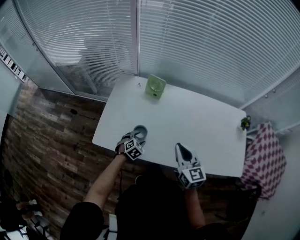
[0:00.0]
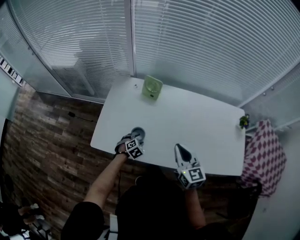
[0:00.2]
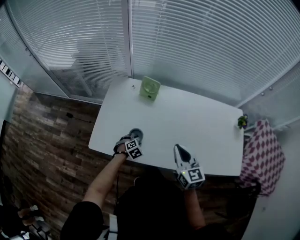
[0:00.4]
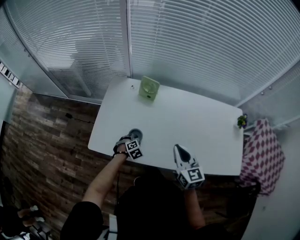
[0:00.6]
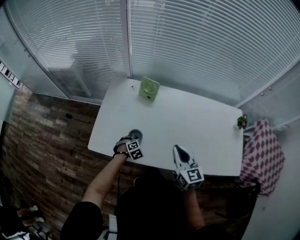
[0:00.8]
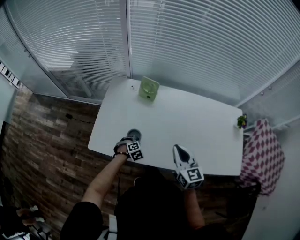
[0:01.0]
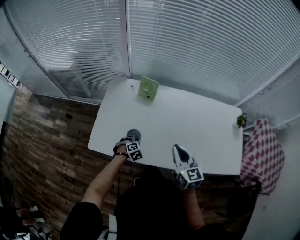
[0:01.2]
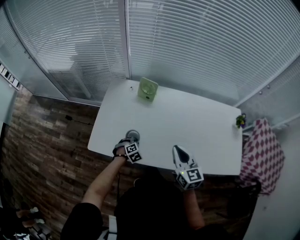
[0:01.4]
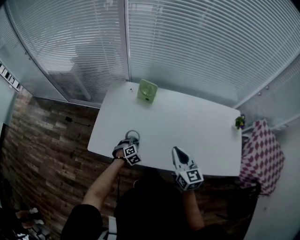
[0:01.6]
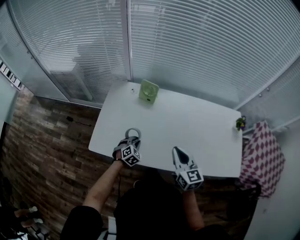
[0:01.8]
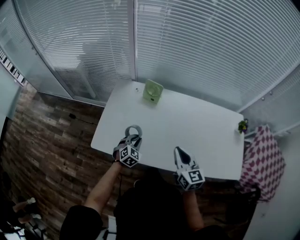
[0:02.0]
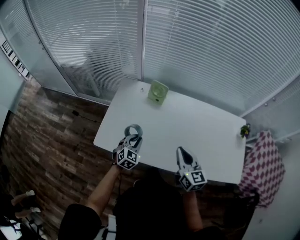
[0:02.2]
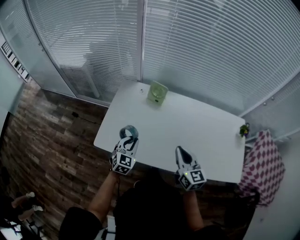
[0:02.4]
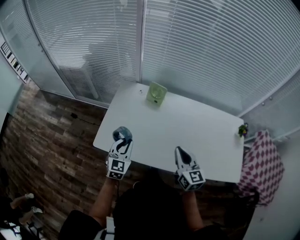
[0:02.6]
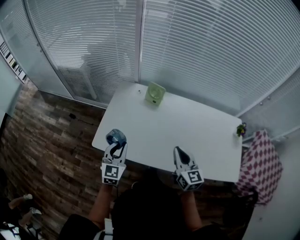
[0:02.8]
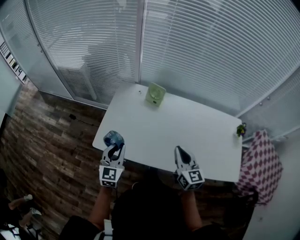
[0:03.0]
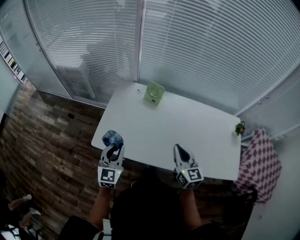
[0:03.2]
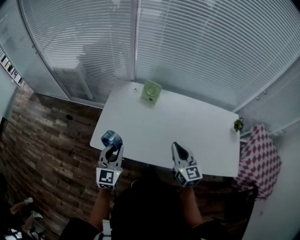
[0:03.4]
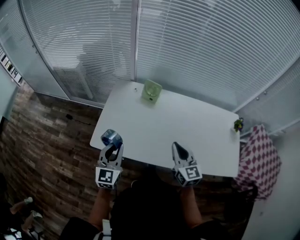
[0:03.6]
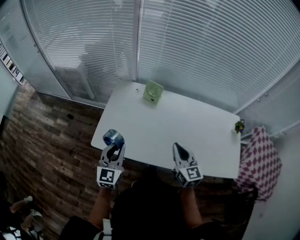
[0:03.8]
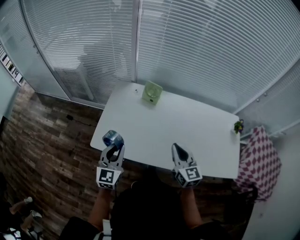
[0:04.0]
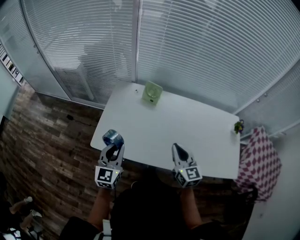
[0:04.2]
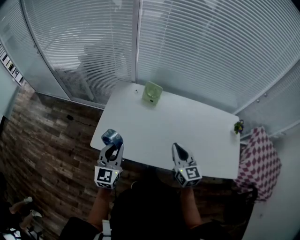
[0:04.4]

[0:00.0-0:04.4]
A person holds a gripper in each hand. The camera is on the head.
0:00.0 to 0:01.4: The left gripper closes its fingers.
0:01.4 to 0:03.0: The left gripper shifts some 30 cm upward, and tilts its fingers some 50 degrees upward.
0:03.0 to 0:04.4: The grippers move only a little.

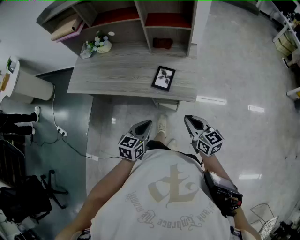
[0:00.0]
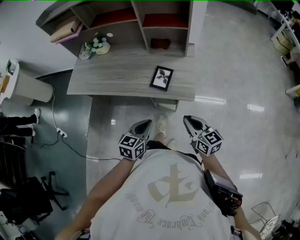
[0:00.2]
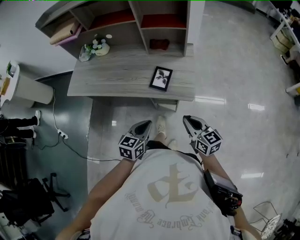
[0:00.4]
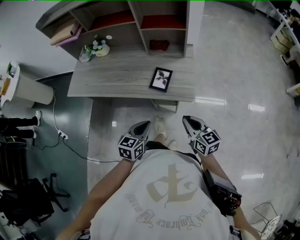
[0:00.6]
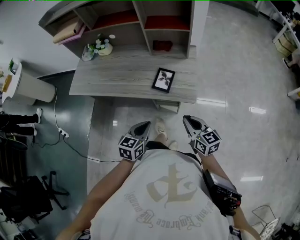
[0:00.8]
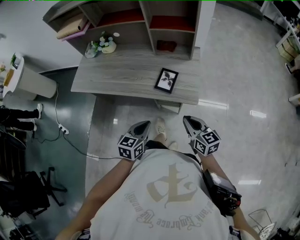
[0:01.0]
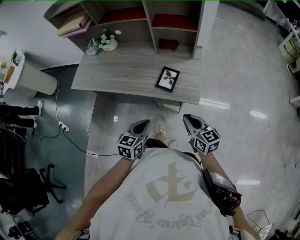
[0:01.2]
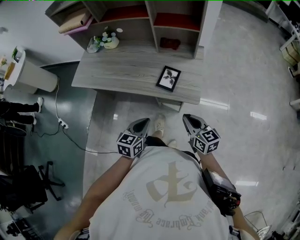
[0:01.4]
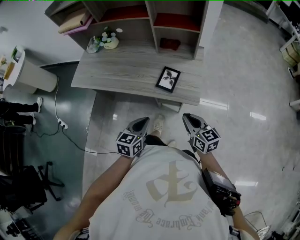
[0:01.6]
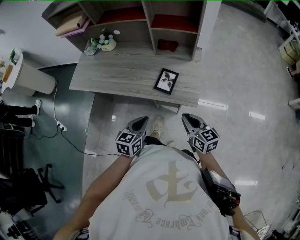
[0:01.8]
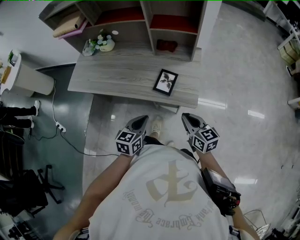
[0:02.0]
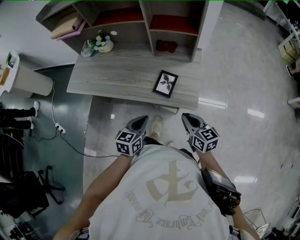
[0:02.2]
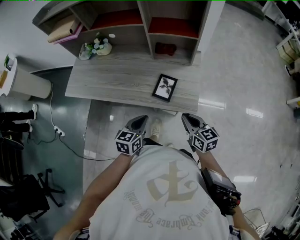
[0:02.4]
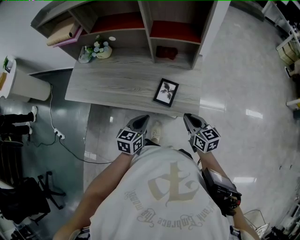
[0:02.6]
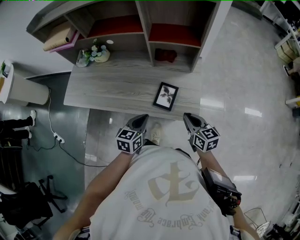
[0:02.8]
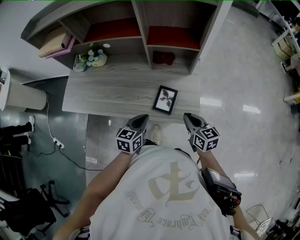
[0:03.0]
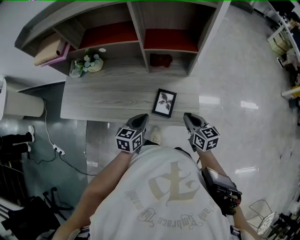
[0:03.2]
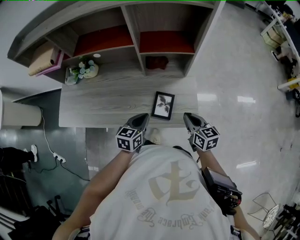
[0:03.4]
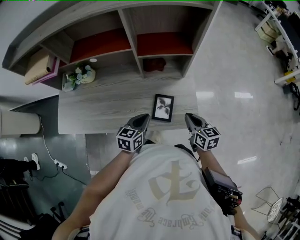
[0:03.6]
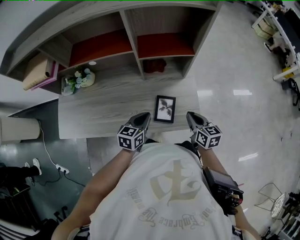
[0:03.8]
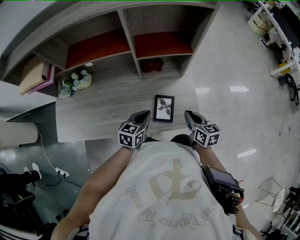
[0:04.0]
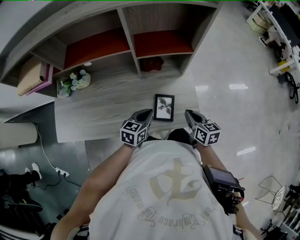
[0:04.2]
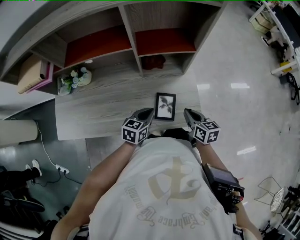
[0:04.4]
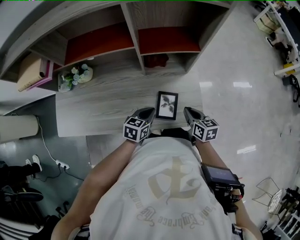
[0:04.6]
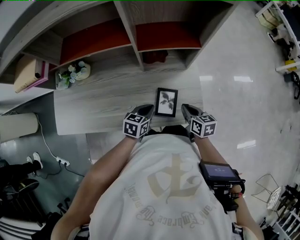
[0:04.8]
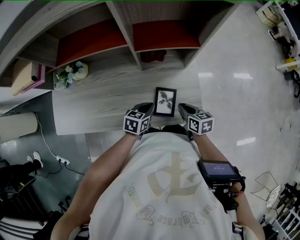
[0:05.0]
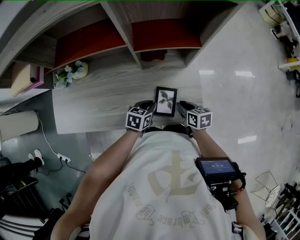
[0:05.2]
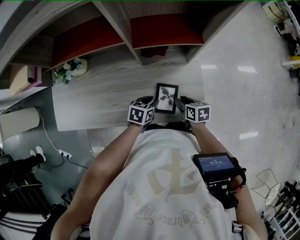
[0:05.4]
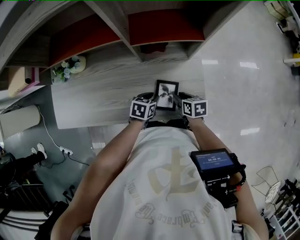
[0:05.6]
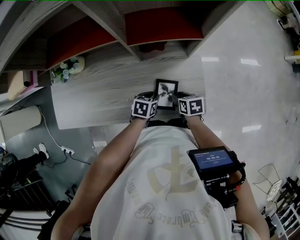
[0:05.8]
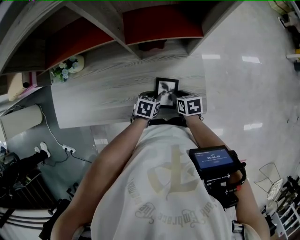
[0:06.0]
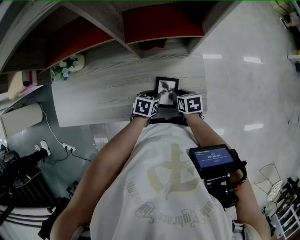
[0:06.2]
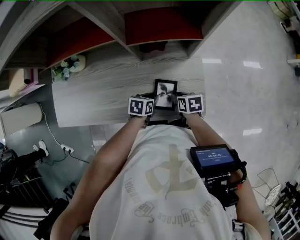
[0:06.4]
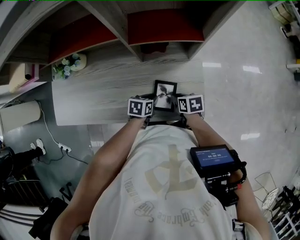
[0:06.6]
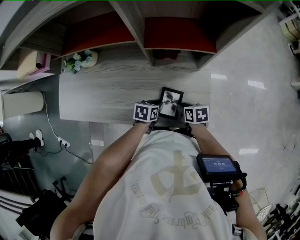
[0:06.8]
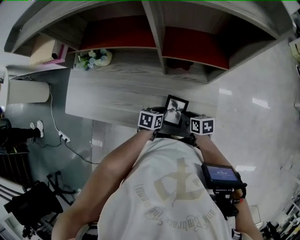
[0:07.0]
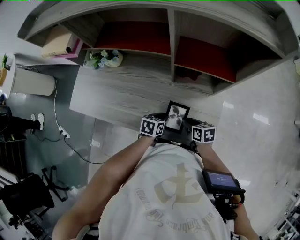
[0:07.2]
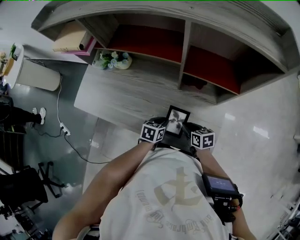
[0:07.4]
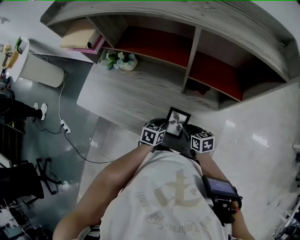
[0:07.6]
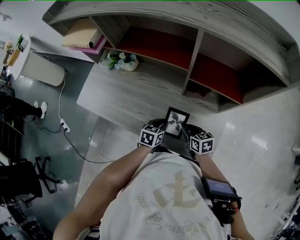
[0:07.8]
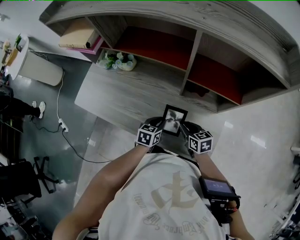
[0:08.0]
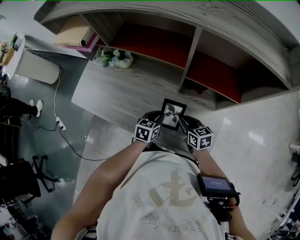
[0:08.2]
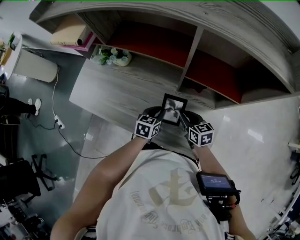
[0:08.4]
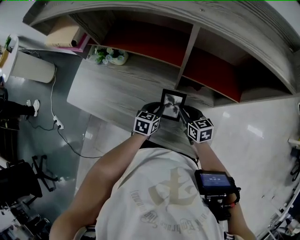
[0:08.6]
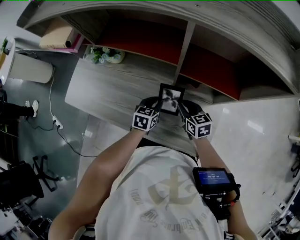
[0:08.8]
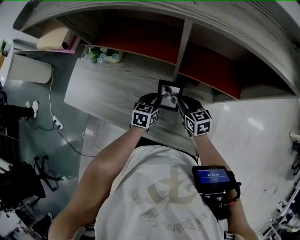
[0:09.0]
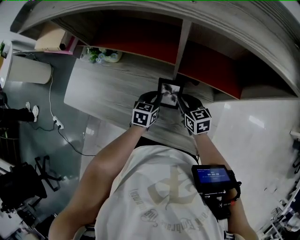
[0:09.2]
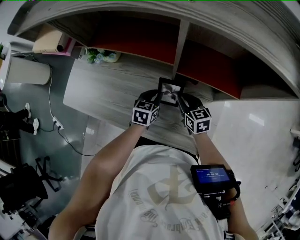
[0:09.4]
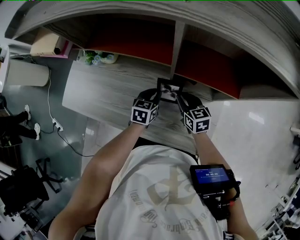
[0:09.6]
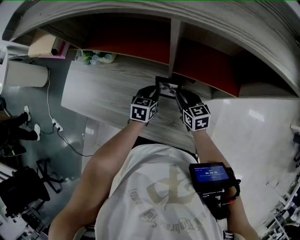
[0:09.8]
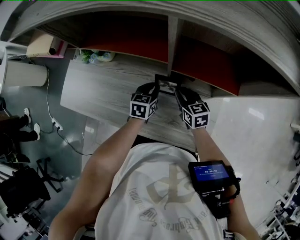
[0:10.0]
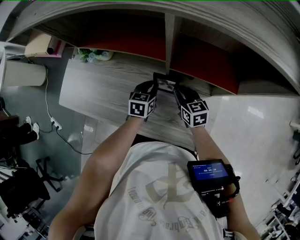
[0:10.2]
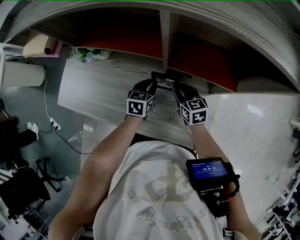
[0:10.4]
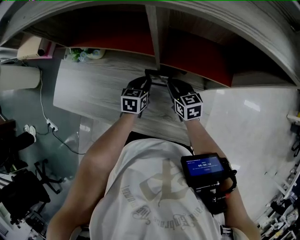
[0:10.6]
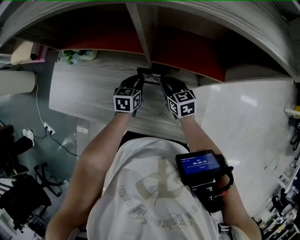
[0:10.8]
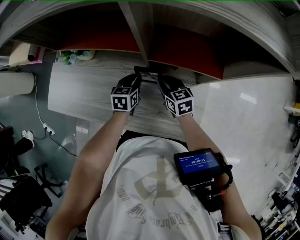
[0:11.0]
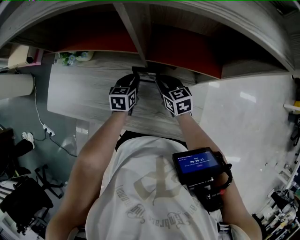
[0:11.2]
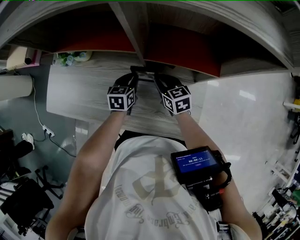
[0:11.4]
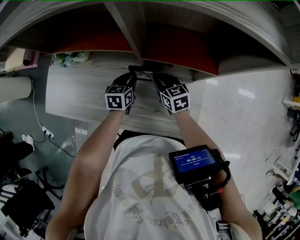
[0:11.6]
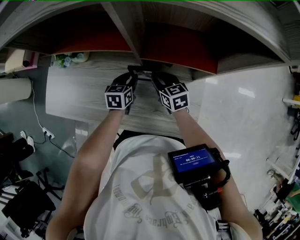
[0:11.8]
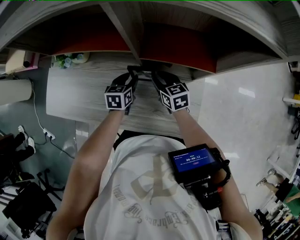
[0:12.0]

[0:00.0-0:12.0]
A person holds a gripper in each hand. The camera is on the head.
0:00.0 to 0:01.6: There are only small adjustments of the grippers.
0:01.6 to 0:03.0: The two grippers go approximately 15 cm forward.
0:03.0 to 0:04.4: The left gripper moves forward, approximately 10 cm, while the right gripper heads forward, covering some 5 cm.
0:04.4 to 0:06.0: Both grippers move downward, roughly 15 cm. The left gripper swivels roughly 30 degrees, and opens; the right gripper swivels some 30 degrees, and opens.
0:06.0 to 0:07.6: The right gripper ends up roughly 10 cm from where it was, and rotates some 30 degrees, while the left gripper moves some 10 cm, and changes its angle by about 30 degrees.
0:07.6 to 0:09.0: The two grippers go about 10 cm forward.
0:09.0 to 0:10.4: There are only small adjustments of the grippers.
0:10.4 to 0:12.0: The left gripper opens up.

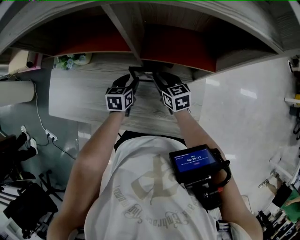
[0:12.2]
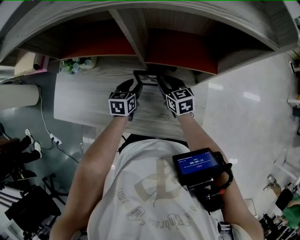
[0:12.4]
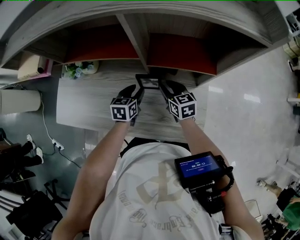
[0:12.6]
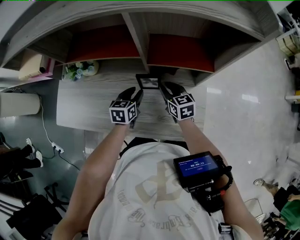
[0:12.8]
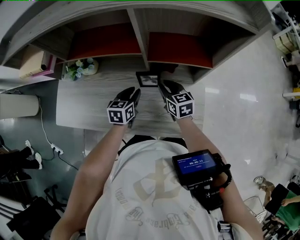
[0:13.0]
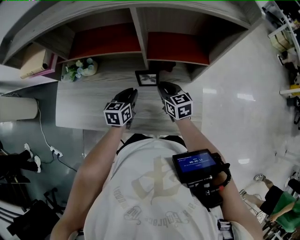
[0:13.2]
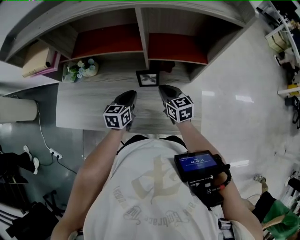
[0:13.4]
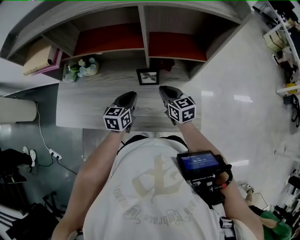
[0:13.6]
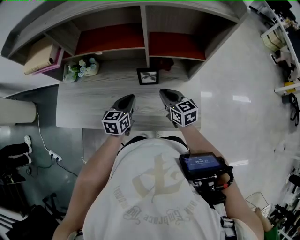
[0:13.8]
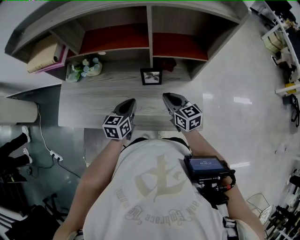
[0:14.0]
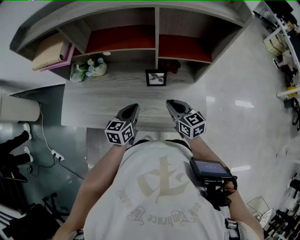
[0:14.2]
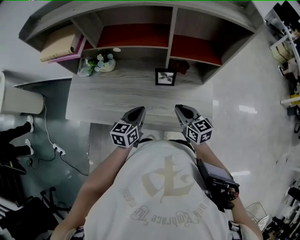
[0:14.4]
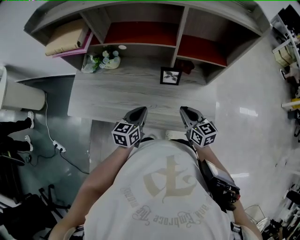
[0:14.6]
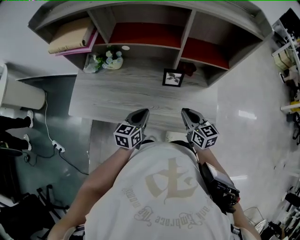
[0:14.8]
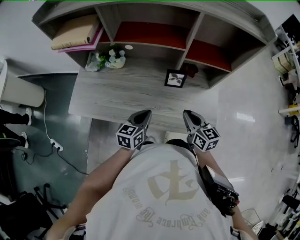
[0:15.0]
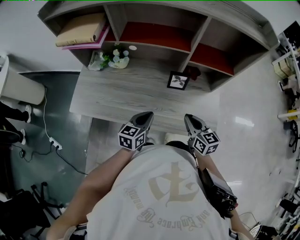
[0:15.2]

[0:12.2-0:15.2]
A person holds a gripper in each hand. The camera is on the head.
0:12.2 to 0:13.8: Both grippers move backward and upward, approximately 15 cm. The right gripper closes, while the left gripper closes its fingers.
0:13.8 to 0:15.2: The right gripper heads backward, covering roughly 10 cm, while the left gripper is displaced backward and to the left by some 10 cm.

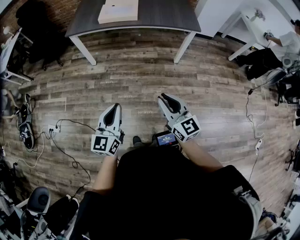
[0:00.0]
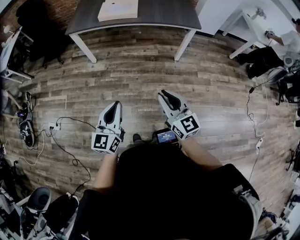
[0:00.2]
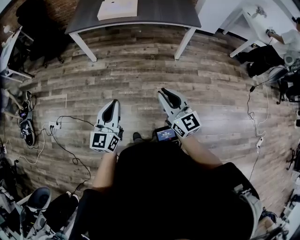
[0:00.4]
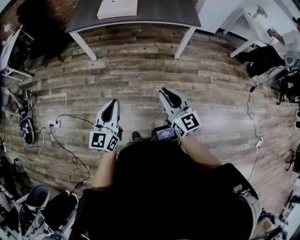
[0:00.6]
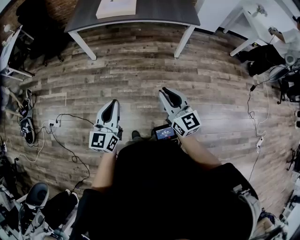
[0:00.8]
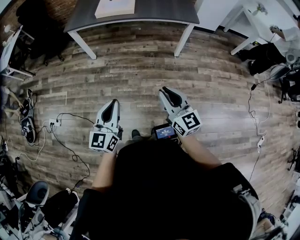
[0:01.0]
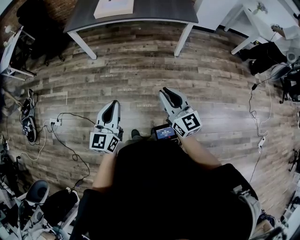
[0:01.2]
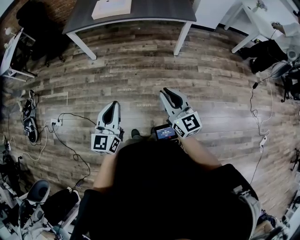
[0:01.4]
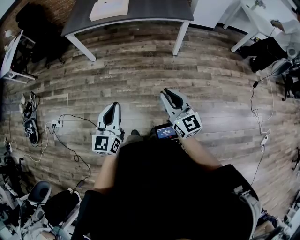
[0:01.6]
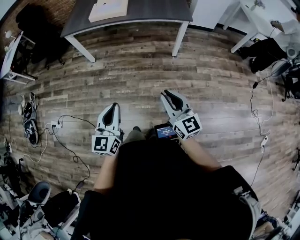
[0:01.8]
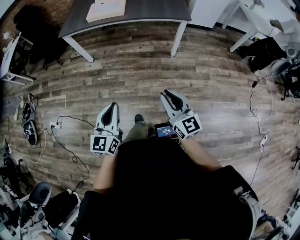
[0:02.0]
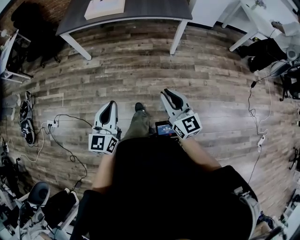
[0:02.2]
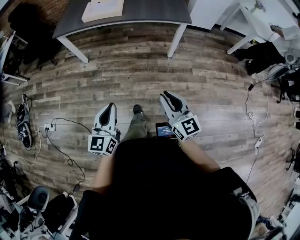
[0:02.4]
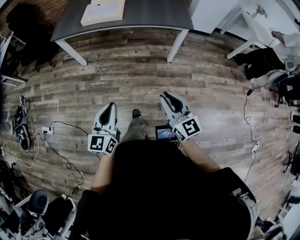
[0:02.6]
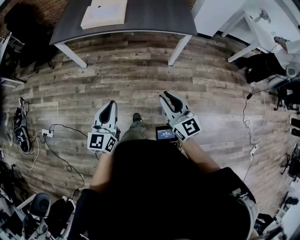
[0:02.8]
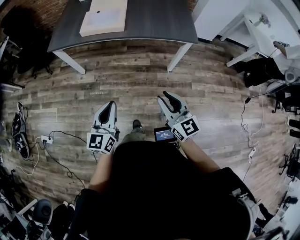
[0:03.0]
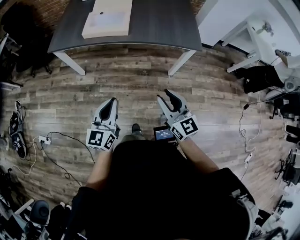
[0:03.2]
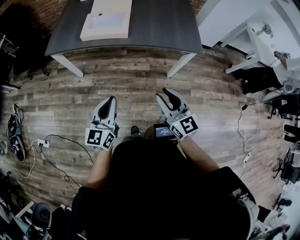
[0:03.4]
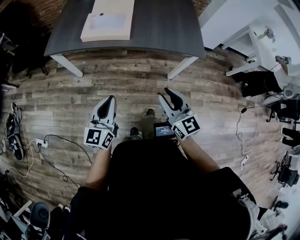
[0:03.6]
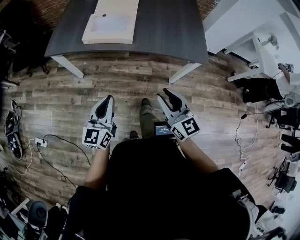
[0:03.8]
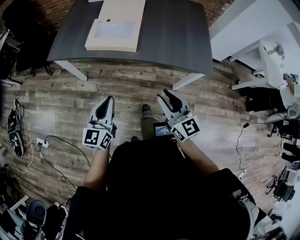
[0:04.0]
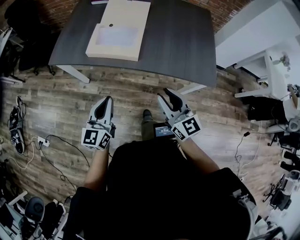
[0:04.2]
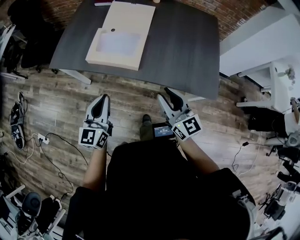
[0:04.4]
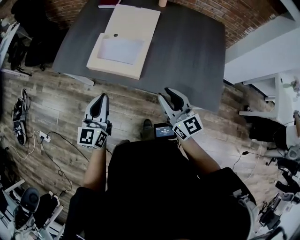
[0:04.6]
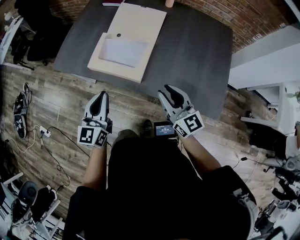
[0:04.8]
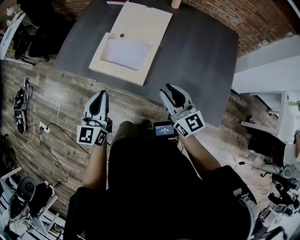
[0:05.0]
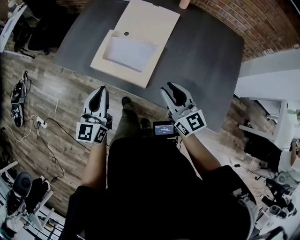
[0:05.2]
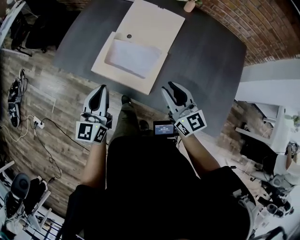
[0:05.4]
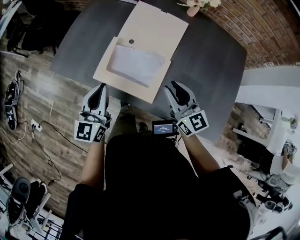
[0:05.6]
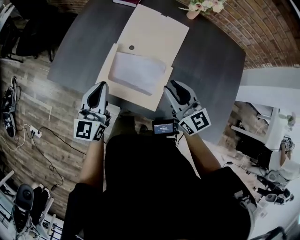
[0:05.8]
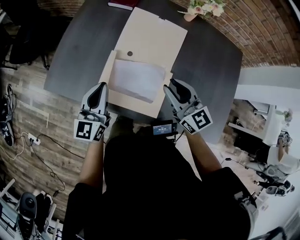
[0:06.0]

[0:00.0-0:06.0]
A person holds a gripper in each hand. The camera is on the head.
0:00.0 to 0:01.6: The left gripper goes roughly 10 cm to the right and backward. Meanwhile the right gripper goes roughly 10 cm to the right.
0:01.6 to 0:03.0: Both grippers travel together forward, about 25 cm.
0:03.0 to 0:04.4: Both grippers travel together forward, roughly 40 cm.
0:04.4 to 0:06.0: Both grippers move forward, about 35 cm.
